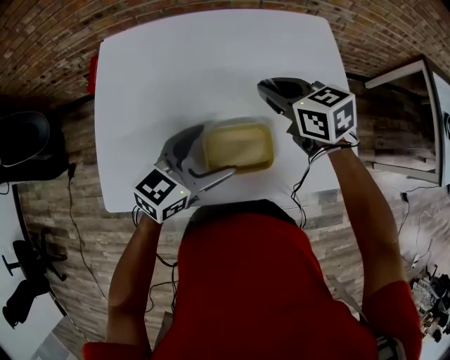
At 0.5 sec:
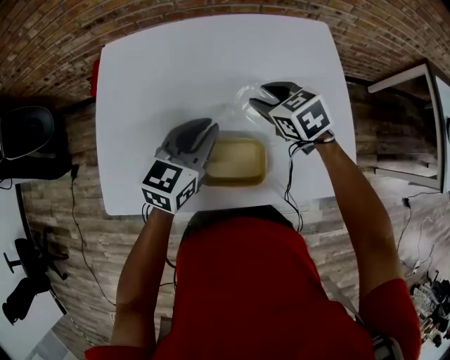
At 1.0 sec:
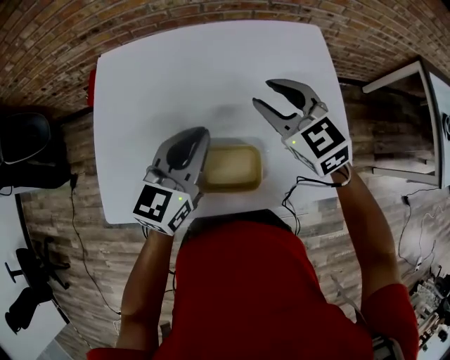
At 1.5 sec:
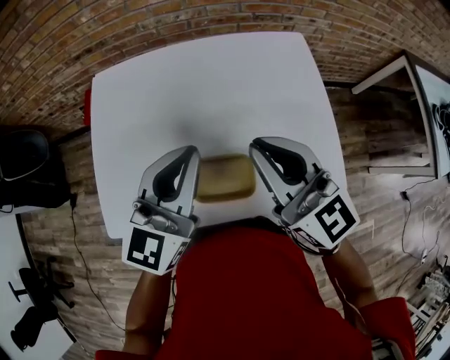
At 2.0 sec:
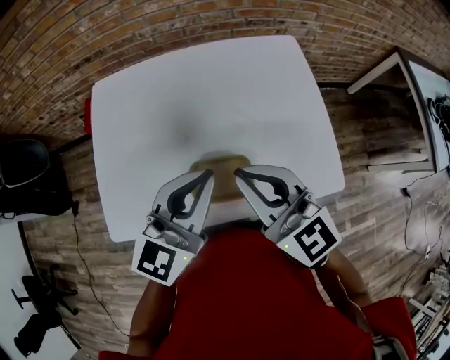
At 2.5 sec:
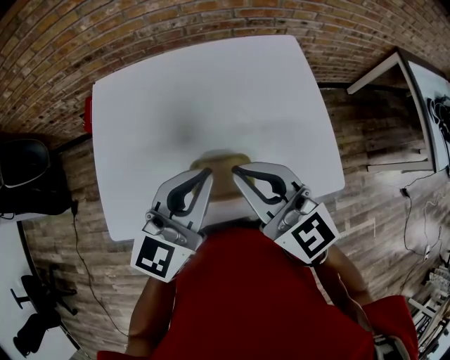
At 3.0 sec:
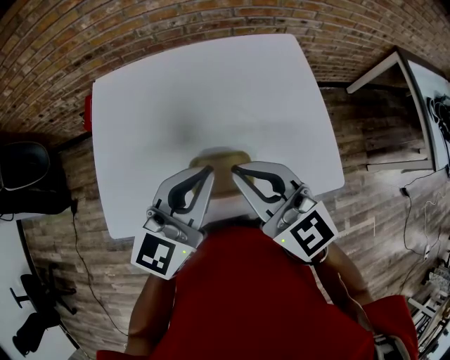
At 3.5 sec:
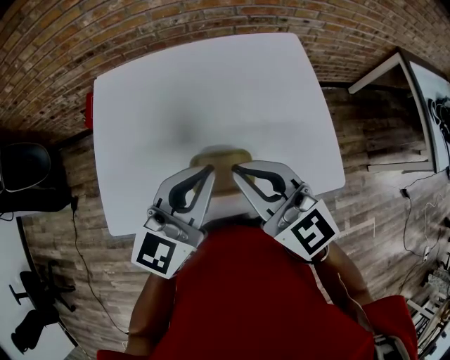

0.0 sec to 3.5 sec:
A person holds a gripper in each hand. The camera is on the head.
0.0 sec to 2.0 sec: The right gripper heads upward and backward, covering approximately 20 cm, tilts its fingers about 30 degrees upward, and opens, then closes again. The left gripper travels upward by approximately 15 cm, swivels some 20 degrees, and closes.
2.0 sec to 3.5 sec: The grippers stay close to where they were, moving slightly.

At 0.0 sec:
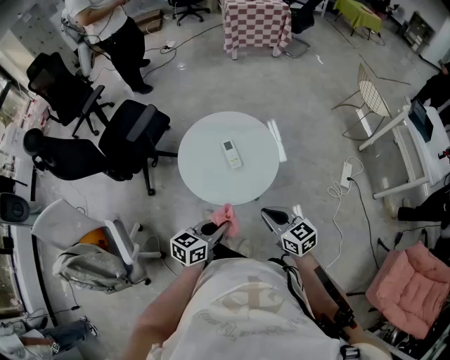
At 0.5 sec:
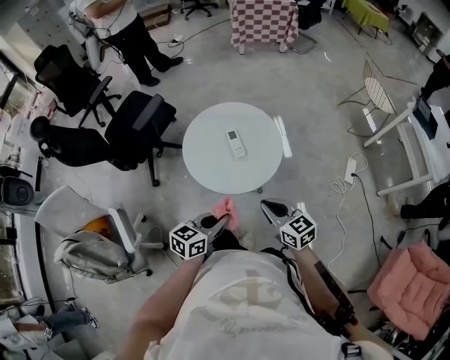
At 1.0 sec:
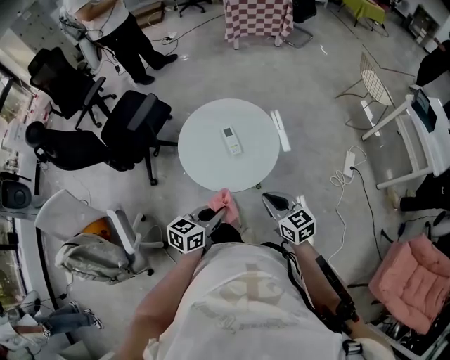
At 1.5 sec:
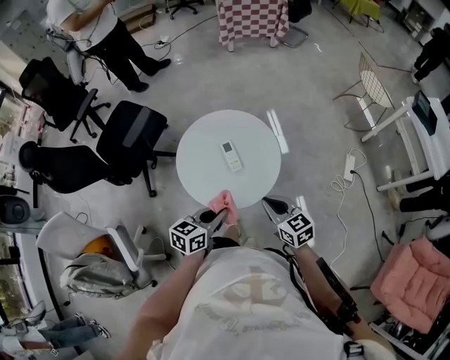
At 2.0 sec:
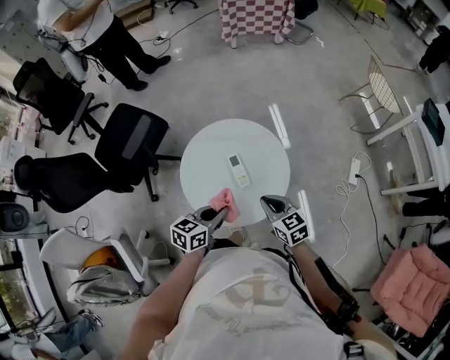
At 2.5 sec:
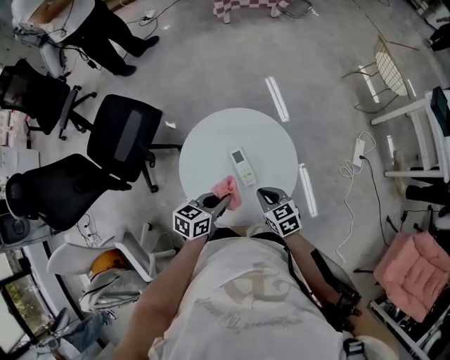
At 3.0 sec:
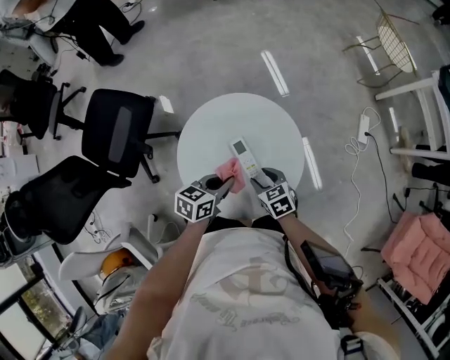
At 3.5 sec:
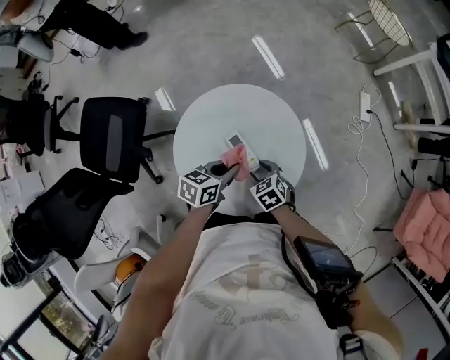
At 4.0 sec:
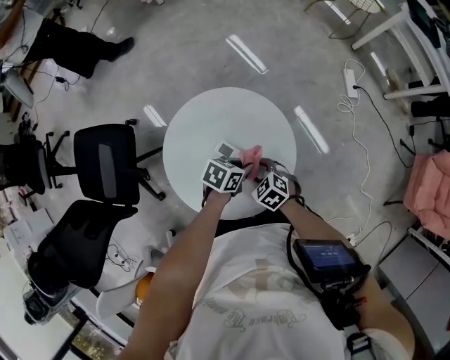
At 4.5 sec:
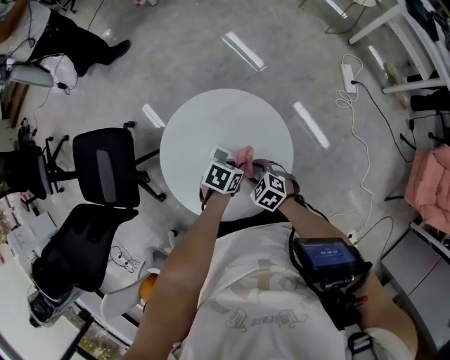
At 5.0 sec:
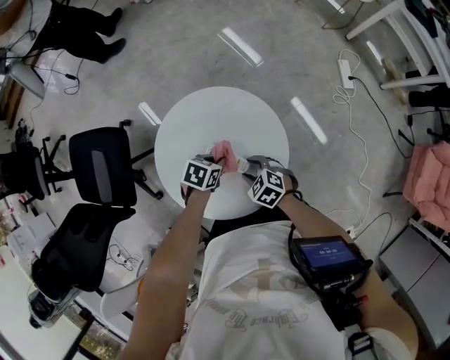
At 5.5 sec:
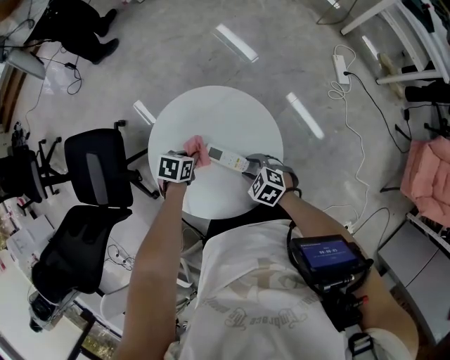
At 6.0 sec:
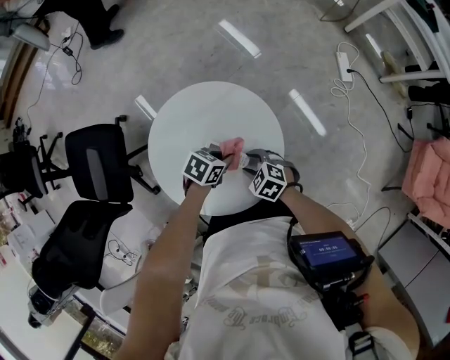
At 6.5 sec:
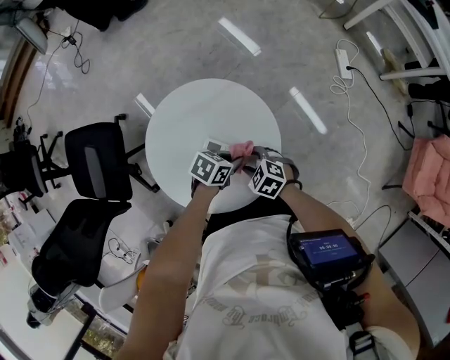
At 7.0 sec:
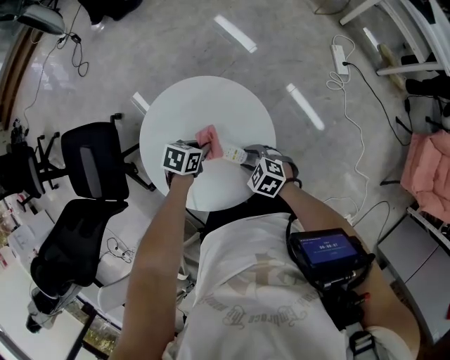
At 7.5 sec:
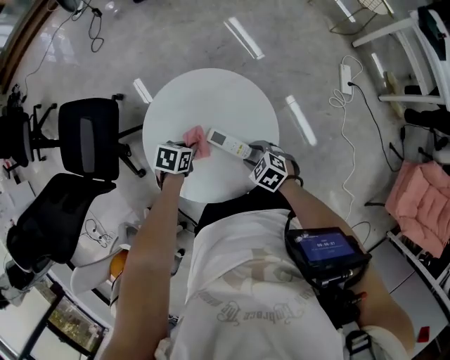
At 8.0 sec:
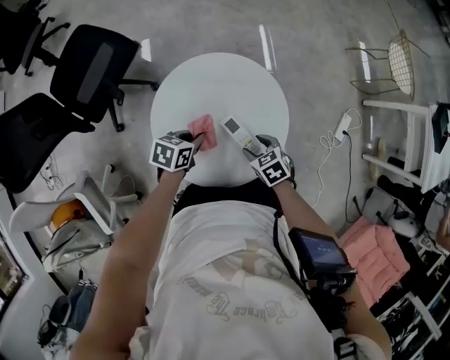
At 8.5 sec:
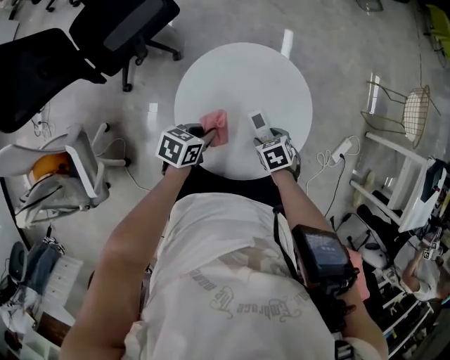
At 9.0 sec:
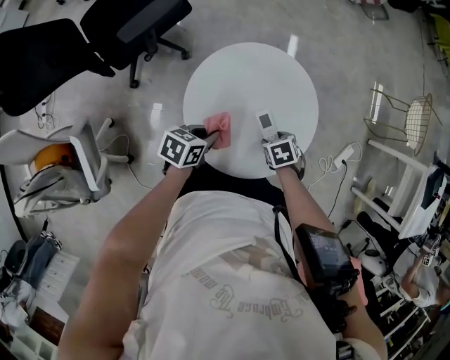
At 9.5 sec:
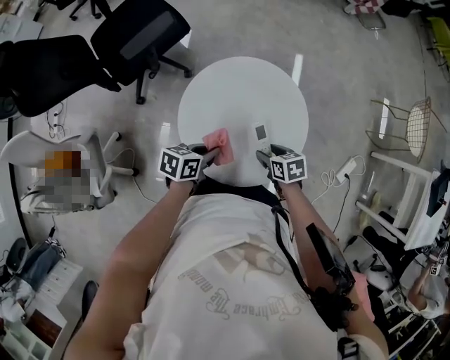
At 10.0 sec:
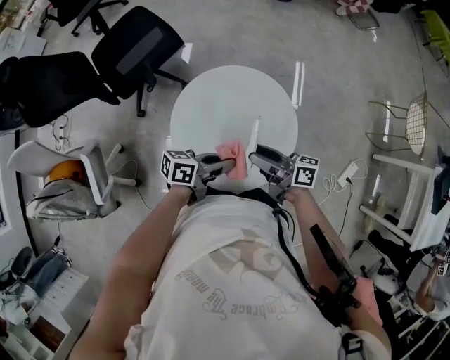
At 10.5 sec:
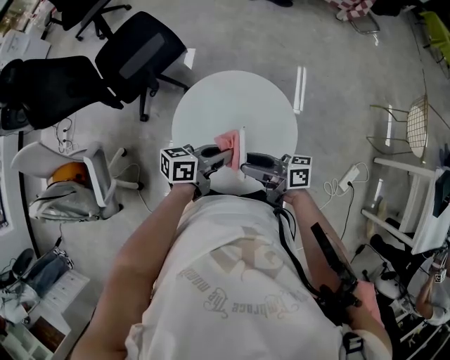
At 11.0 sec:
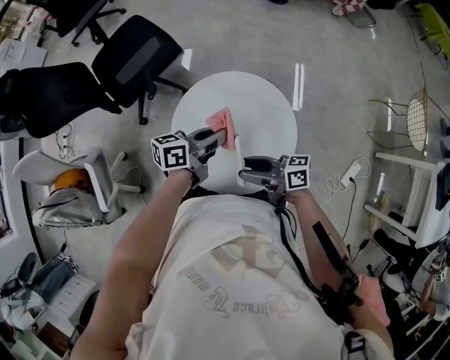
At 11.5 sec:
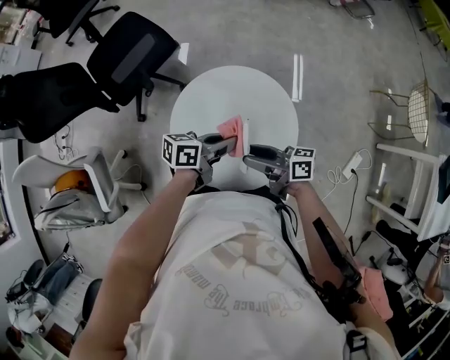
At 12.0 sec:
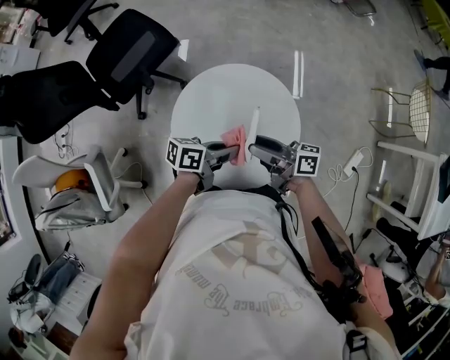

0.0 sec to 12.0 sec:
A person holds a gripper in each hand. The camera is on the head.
0.0 sec to 2.0 sec: Both grippers travel together forward, about 15 cm.
2.0 sec to 4.0 sec: Both grippers move downward, about 15 cm. The right gripper changes its angle by roughly 30 degrees, and opens; the left gripper changes its angle by some 50 degrees.
6.0 sec to 8.0 sec: The left gripper ends up about 10 cm from where it was, and rotates some 40 degrees.
8.0 sec to 10.0 sec: Both grippers move upward, about 15 cm. The left gripper tips its fingers upward by about 30 degrees; the right gripper angles its fingers upward, by approximately 60 degrees.

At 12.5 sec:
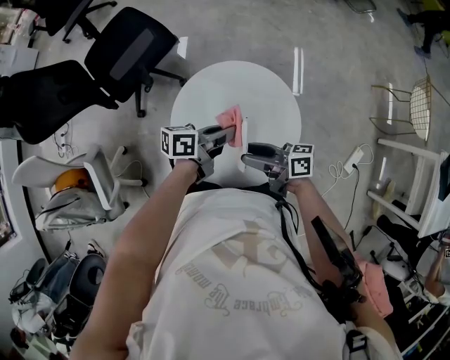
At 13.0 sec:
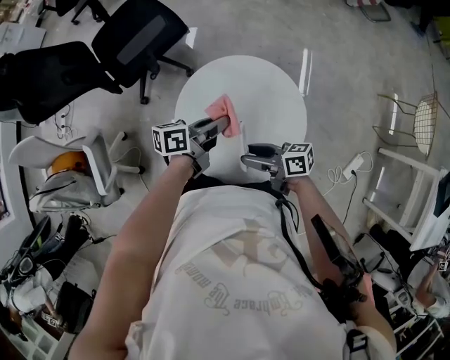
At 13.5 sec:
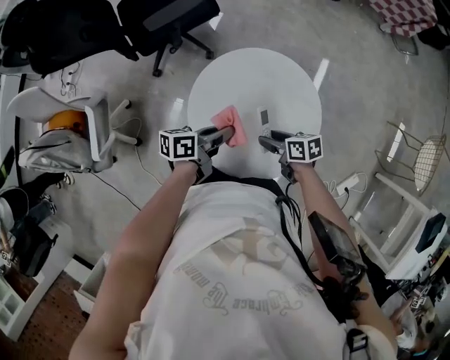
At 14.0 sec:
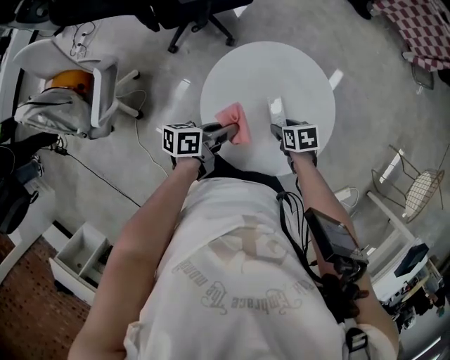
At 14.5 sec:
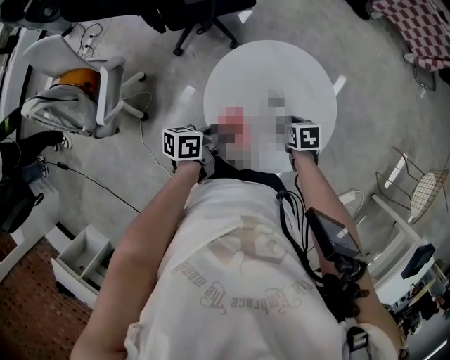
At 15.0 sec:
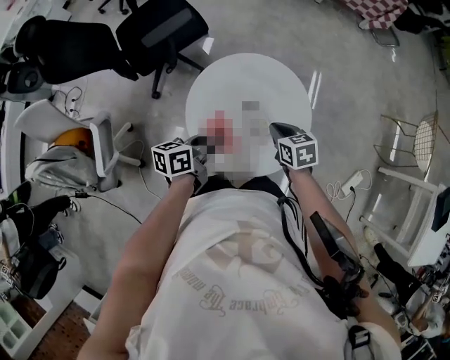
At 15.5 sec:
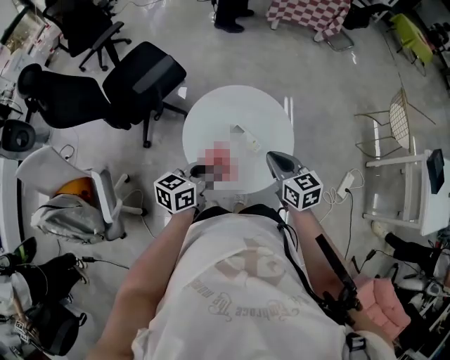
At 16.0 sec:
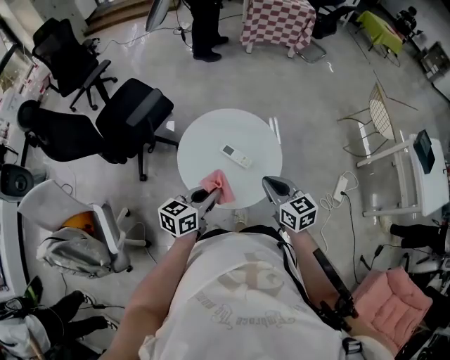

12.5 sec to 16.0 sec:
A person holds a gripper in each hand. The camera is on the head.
12.5 sec to 14.5 sec: The left gripper ends up some 15 cm from where it was, and rotates about 30 degrees; the right gripper goes about 15 cm downward, and points its fingers some 60 degrees further downward.
14.5 sec to 16.0 sec: The left gripper travels upward by approximately 10 cm, and rotates some 40 degrees. The right gripper heads upward, covering some 25 cm, angles its fingers upward, by roughly 40 degrees, and closes up.
